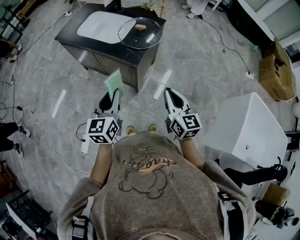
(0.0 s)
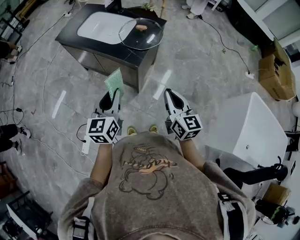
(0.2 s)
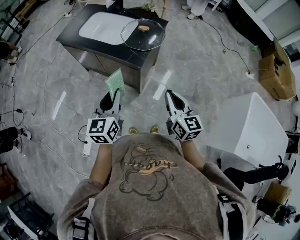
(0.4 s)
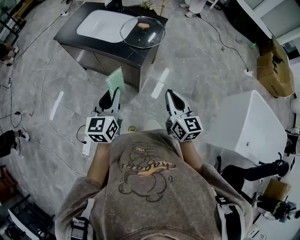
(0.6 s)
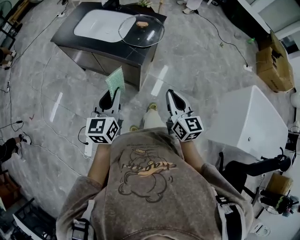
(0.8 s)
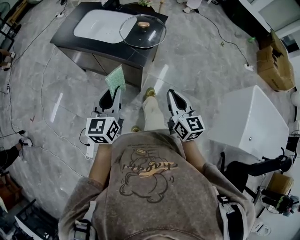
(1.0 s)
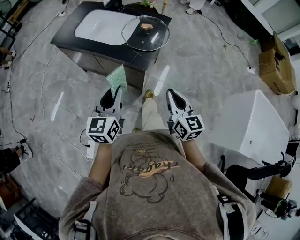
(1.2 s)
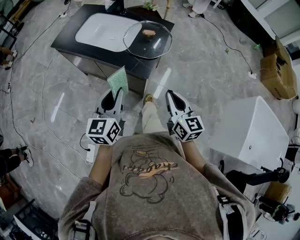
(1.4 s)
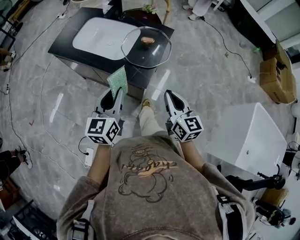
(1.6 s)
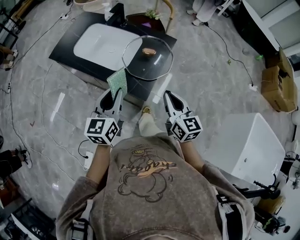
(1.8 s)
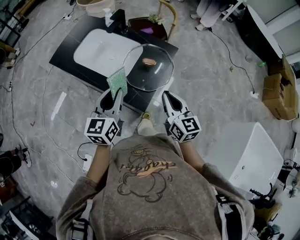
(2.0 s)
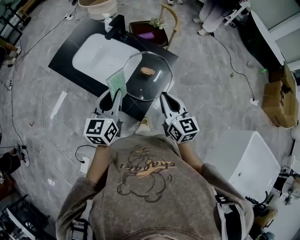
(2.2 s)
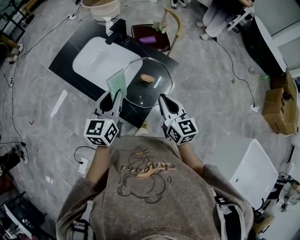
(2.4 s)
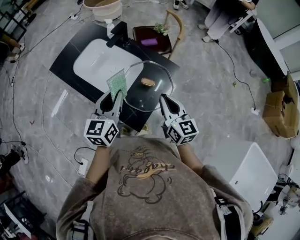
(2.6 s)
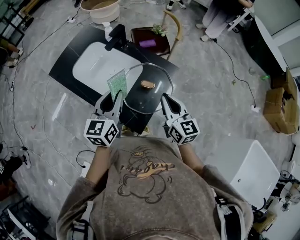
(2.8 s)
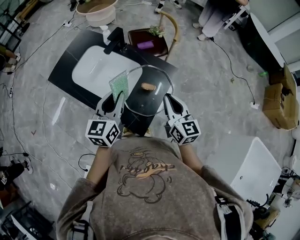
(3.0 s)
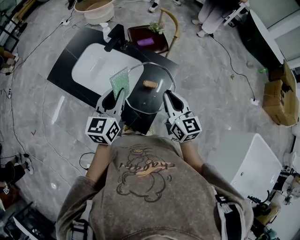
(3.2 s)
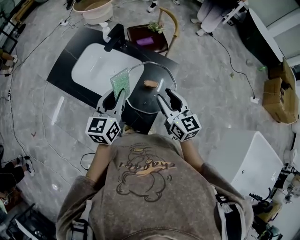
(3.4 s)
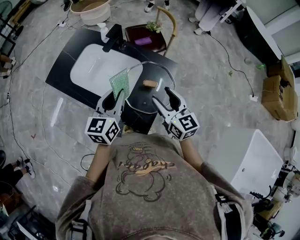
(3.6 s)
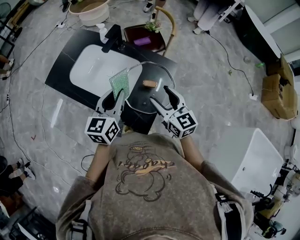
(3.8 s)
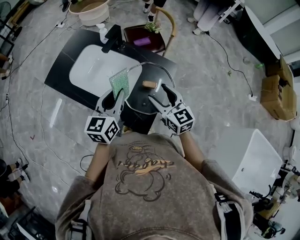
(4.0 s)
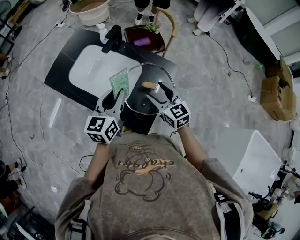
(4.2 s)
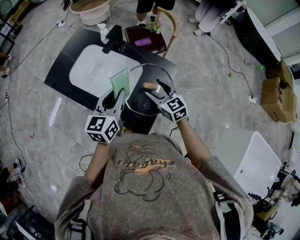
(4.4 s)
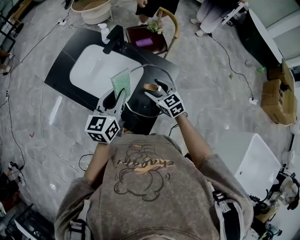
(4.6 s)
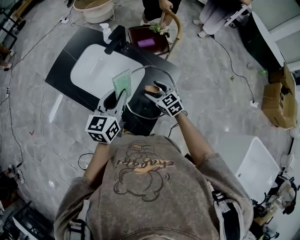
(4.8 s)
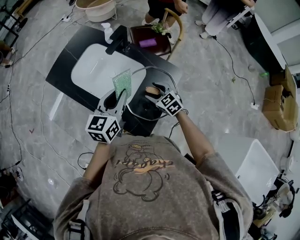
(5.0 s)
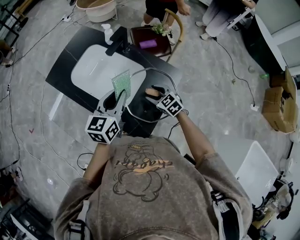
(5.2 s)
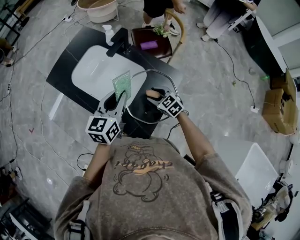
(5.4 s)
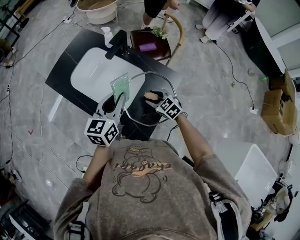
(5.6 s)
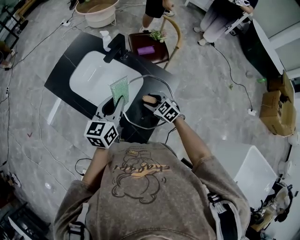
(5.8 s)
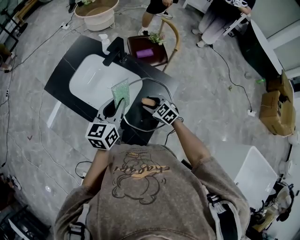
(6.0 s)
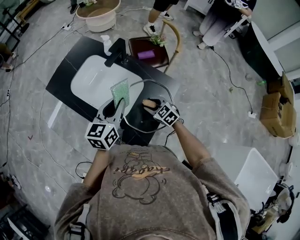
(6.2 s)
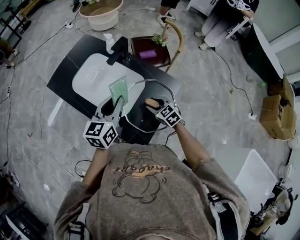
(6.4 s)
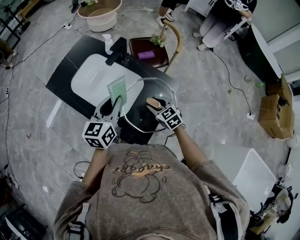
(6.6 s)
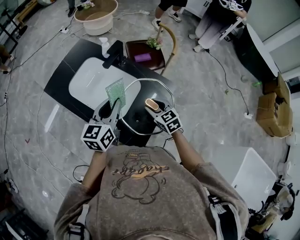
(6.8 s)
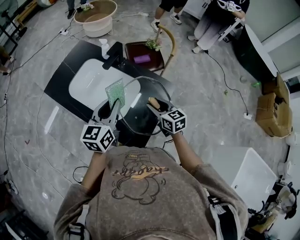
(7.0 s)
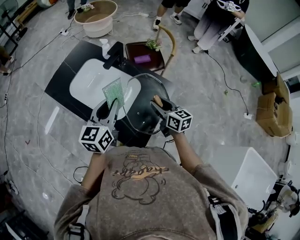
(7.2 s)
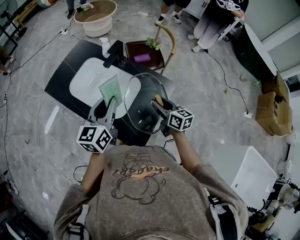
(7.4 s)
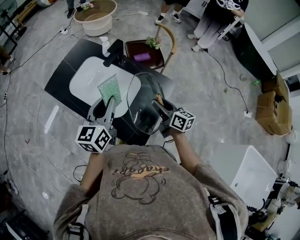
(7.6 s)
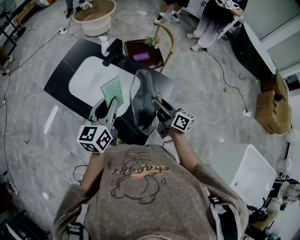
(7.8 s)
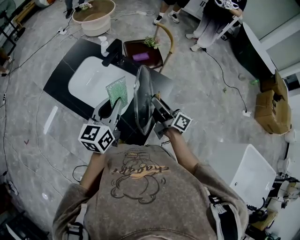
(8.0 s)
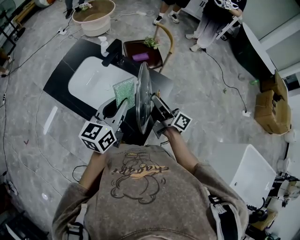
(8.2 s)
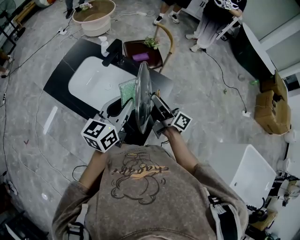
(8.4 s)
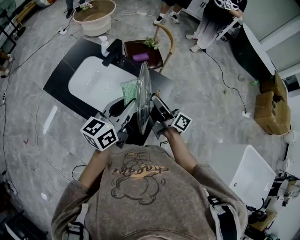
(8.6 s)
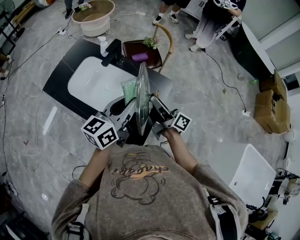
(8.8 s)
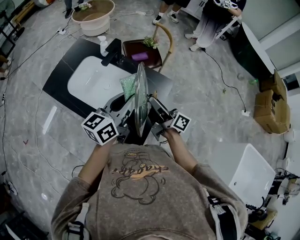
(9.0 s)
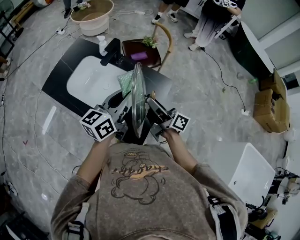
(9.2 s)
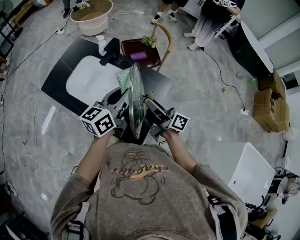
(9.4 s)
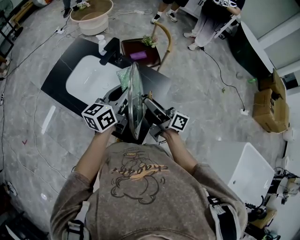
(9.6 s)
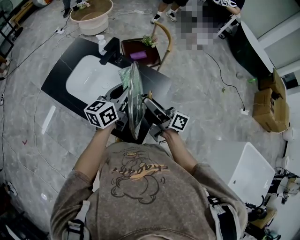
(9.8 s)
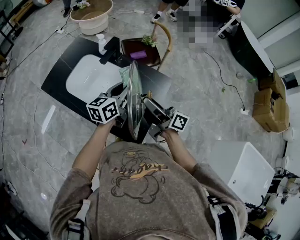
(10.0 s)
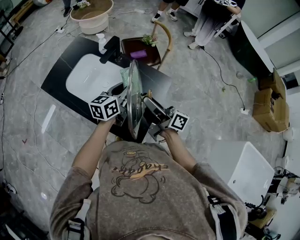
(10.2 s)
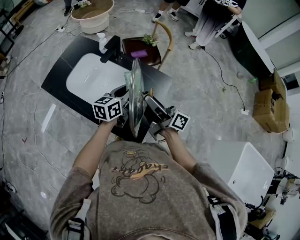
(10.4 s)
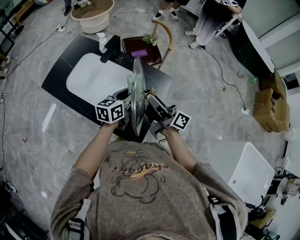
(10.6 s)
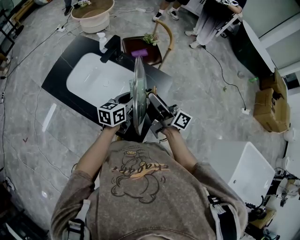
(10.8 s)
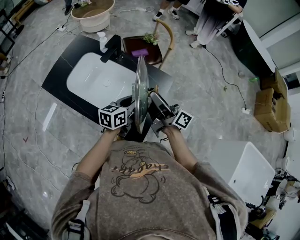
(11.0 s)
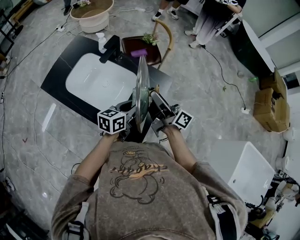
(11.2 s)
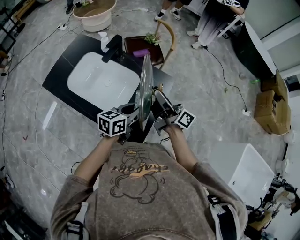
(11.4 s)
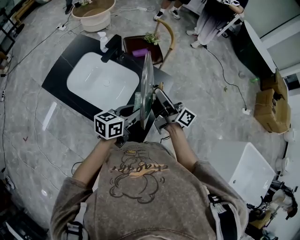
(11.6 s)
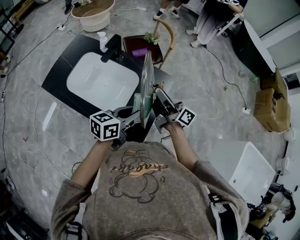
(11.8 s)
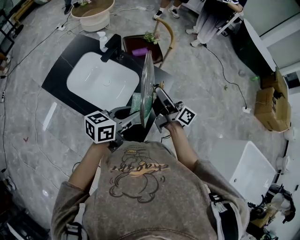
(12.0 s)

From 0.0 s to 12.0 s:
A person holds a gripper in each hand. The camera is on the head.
From 0.0 s to 1.6 s: The two grippers go about 15 cm forward.
From 1.6 s to 3.0 s: Both grippers move forward, approximately 25 cm.
From 3.0 s to 4.4 s: The right gripper heads downward, forward and to the left, covering roughly 15 cm, rotates roughly 30 degrees, and opens.
From 4.4 s to 6.0 s: The right gripper goes about 10 cm downward, and turns by about 30 degrees.
From 6.0 s to 7.6 s: The left gripper is displaced upward by some 5 cm. Meanwhile the right gripper travels upward and to the right by roughly 15 cm, and angles its fingers upward, by about 30 degrees.
From 7.6 s to 9.0 s: The left gripper goes about 10 cm to the right, and changes its angle by roughly 30 degrees. Meanwhile the right gripper goes approximately 5 cm upward, and rotates about 30 degrees.
From 9.0 s to 10.4 s: The left gripper travels downward and forward by approximately 15 cm.
From 10.4 s to 12.0 s: The left gripper shifts about 10 cm backward, and changes its angle by some 20 degrees. The right gripper ends up roughly 5 cm from where it was.

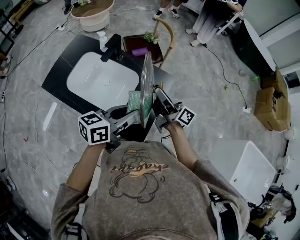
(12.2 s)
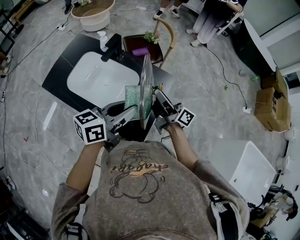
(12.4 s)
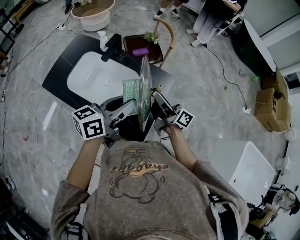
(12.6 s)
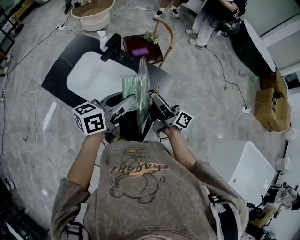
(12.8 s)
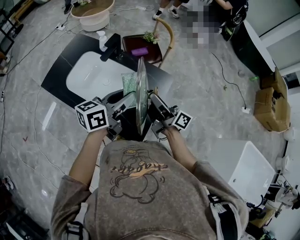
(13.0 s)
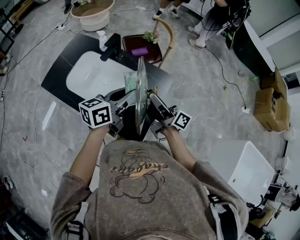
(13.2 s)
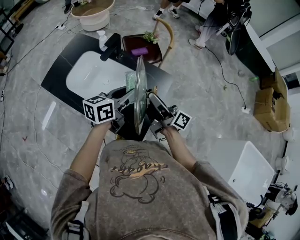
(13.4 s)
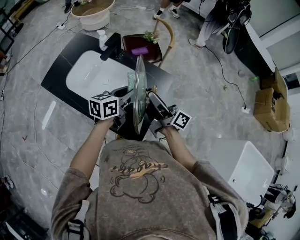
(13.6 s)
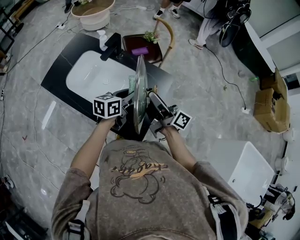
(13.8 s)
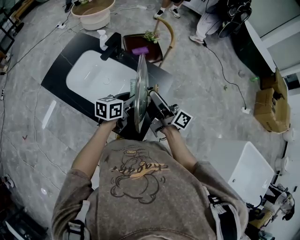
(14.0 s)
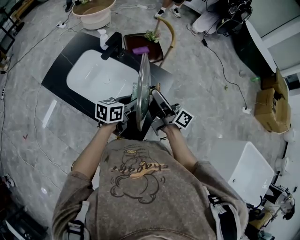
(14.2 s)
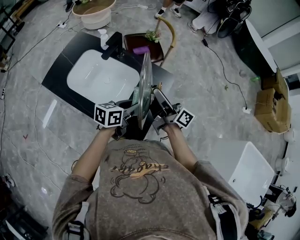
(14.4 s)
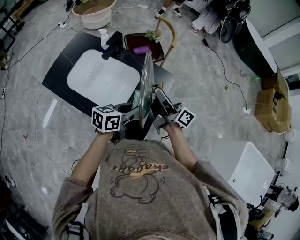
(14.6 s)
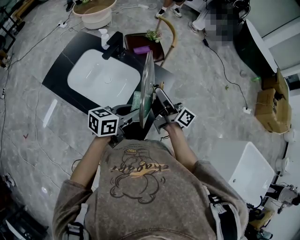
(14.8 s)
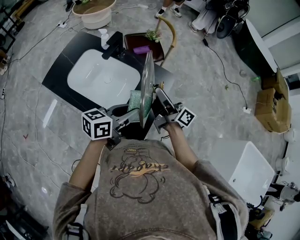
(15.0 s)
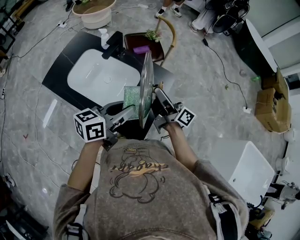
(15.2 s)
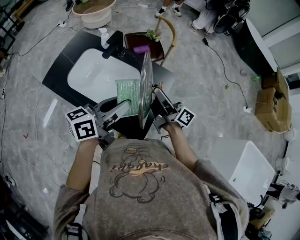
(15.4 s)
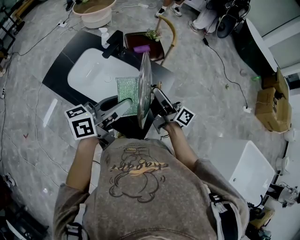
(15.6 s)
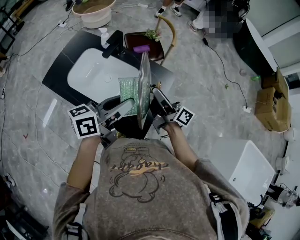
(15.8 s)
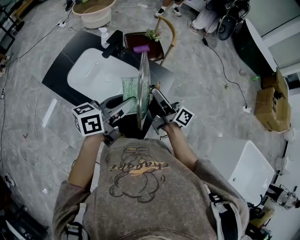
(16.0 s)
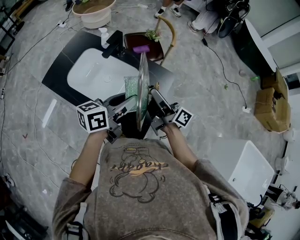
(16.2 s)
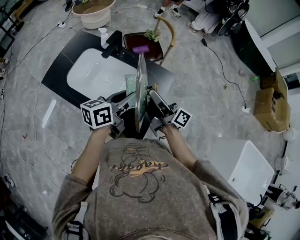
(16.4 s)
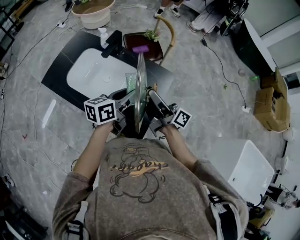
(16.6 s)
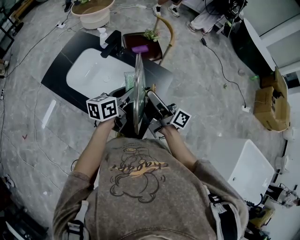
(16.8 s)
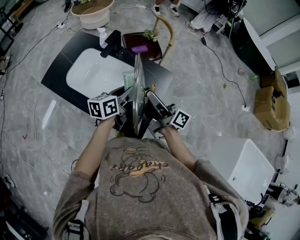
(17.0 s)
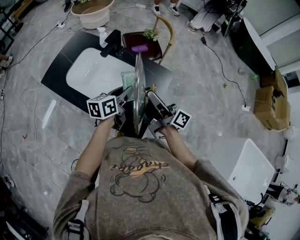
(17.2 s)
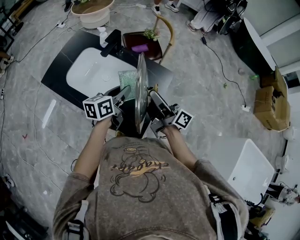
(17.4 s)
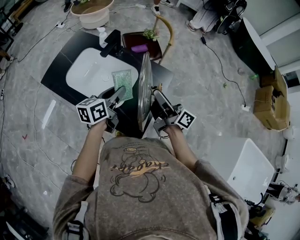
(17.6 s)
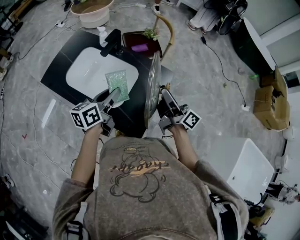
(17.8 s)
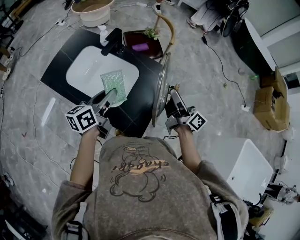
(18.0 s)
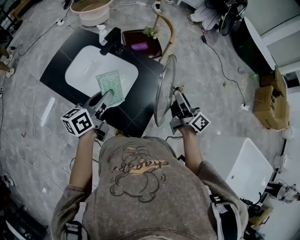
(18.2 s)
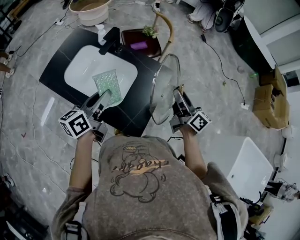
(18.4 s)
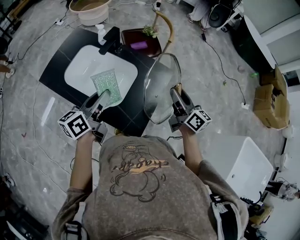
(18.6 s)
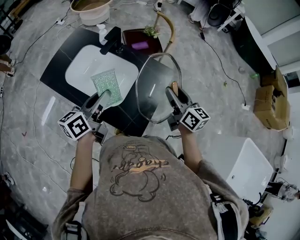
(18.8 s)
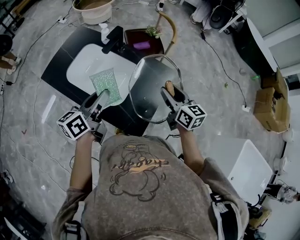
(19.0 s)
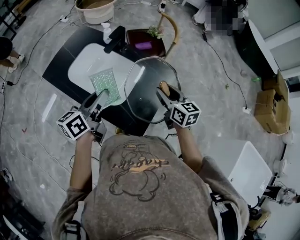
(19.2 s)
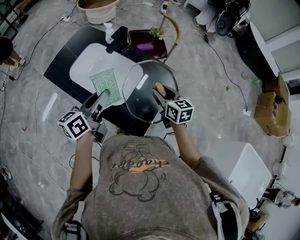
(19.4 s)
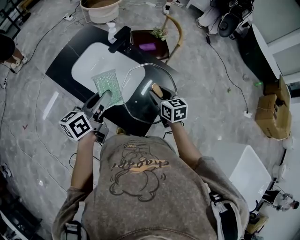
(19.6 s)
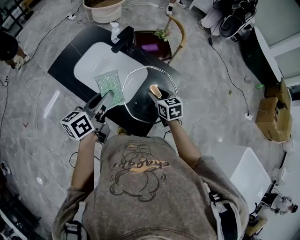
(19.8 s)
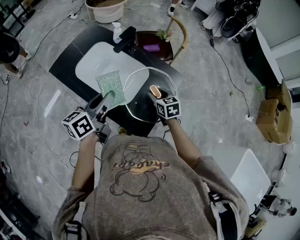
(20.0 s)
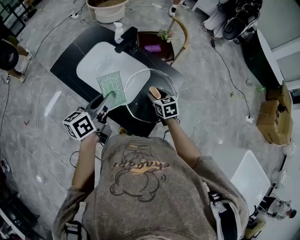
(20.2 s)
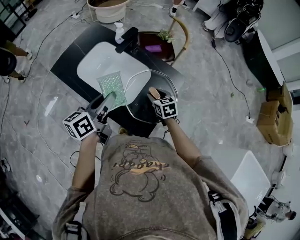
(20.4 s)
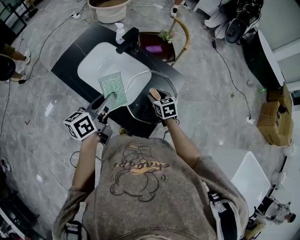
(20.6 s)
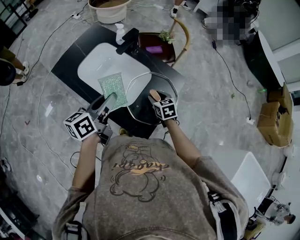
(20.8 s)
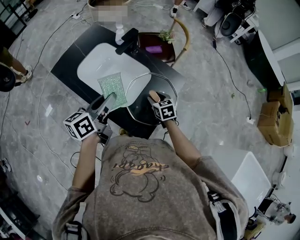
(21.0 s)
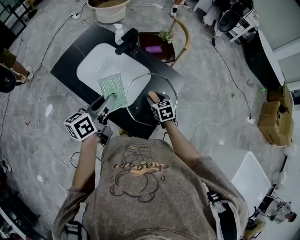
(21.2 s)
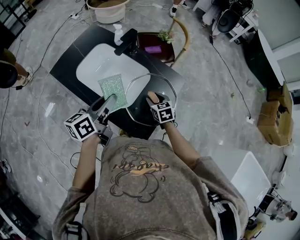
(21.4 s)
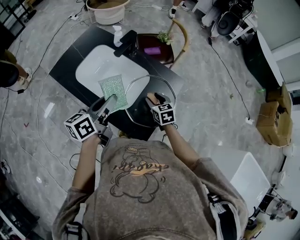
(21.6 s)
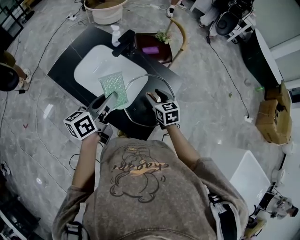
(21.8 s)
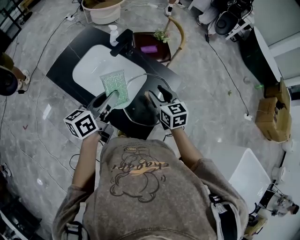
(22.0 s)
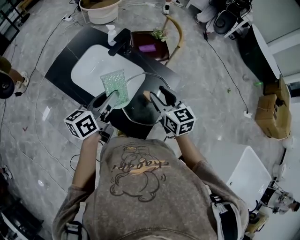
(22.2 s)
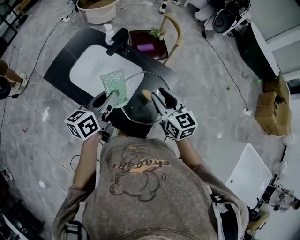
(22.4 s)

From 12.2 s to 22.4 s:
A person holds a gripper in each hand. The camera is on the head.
From 12.2 s to 13.6 s: The left gripper is displaced forward and downward by some 10 cm.
From 13.6 s to 15.2 s: The left gripper moves backward and upward, some 10 cm.
From 15.2 s to 16.6 s: The left gripper travels forward by about 5 cm.
From 16.6 s to 18.0 s: The left gripper goes about 10 cm to the left. The right gripper is displaced to the right by roughly 10 cm.
From 18.0 s to 19.4 s: The right gripper moves downward and to the left, some 10 cm, and angles its fingers downward, by approximately 40 degrees, while the left gripper shifts by approximately 5 cm.
From 19.4 s to 21.0 s: The right gripper goes roughly 10 cm downward, and changes its angle by about 20 degrees.
From 21.0 s to 22.4 s: The right gripper is displaced upward by roughly 20 cm, and turns by about 30 degrees.

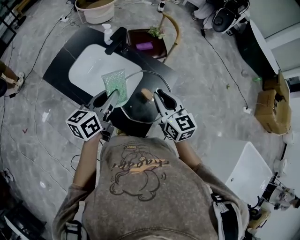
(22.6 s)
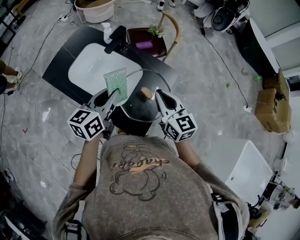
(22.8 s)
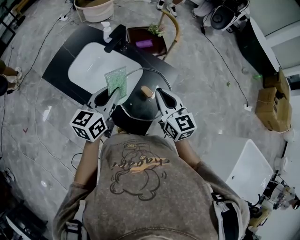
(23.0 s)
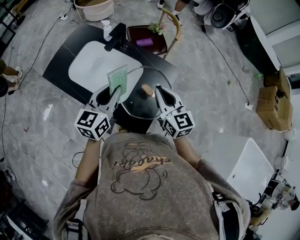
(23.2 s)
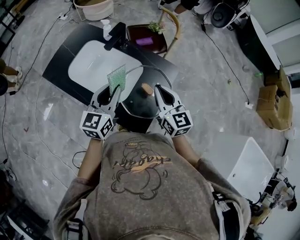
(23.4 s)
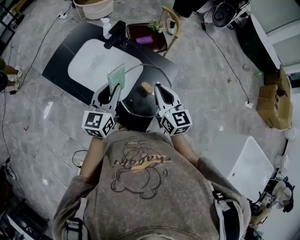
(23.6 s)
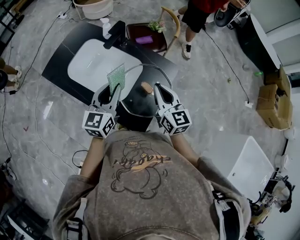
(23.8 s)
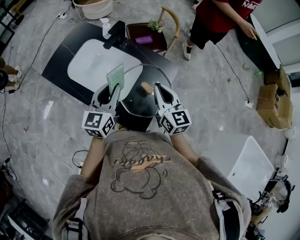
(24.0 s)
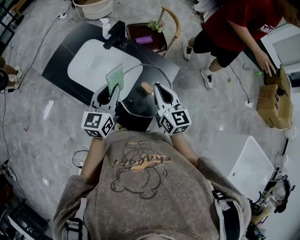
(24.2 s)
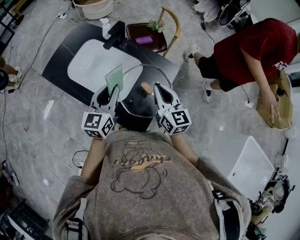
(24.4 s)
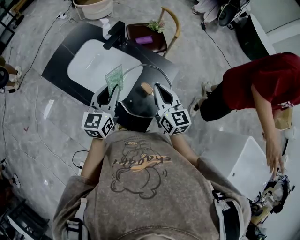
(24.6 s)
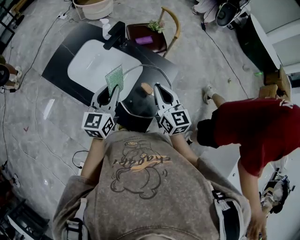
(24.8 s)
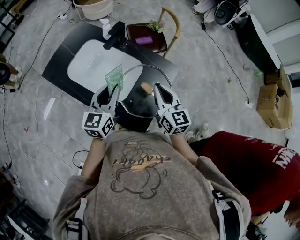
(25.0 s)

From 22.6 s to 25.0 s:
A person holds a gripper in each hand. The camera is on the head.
From 22.6 s to 23.8 s: The left gripper swivels about 30 degrees.
From 23.8 s to 25.0 s: The two grippers keep their place.
